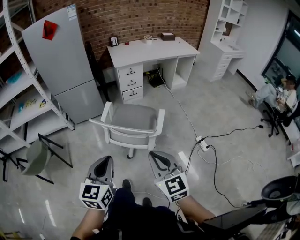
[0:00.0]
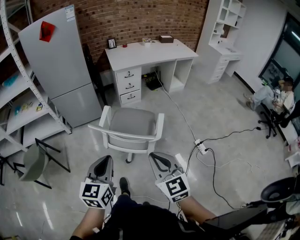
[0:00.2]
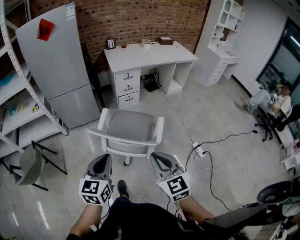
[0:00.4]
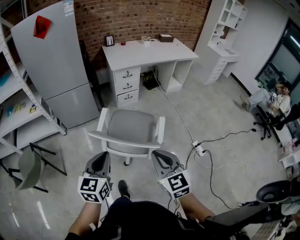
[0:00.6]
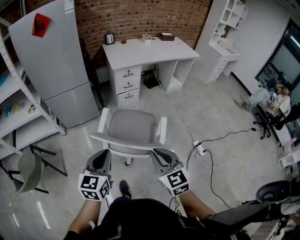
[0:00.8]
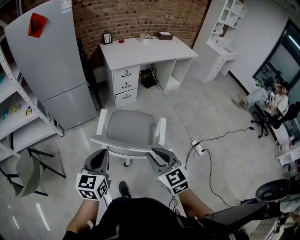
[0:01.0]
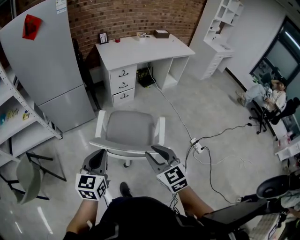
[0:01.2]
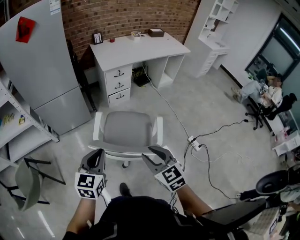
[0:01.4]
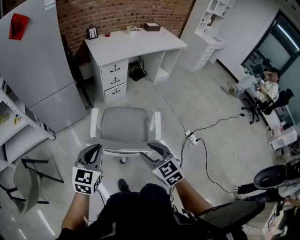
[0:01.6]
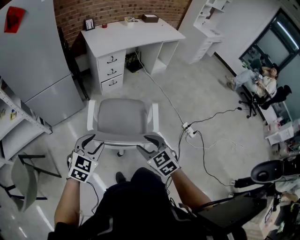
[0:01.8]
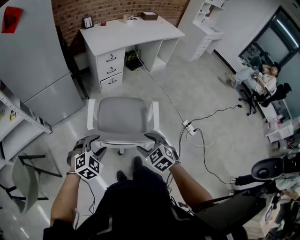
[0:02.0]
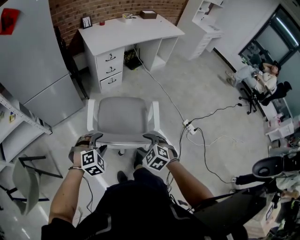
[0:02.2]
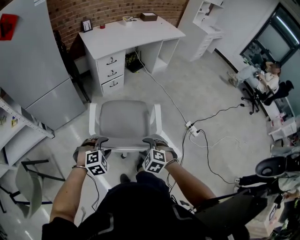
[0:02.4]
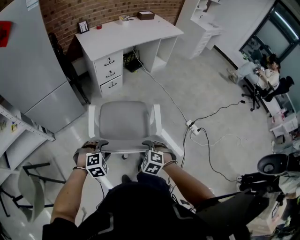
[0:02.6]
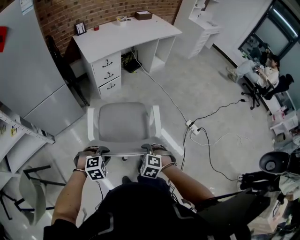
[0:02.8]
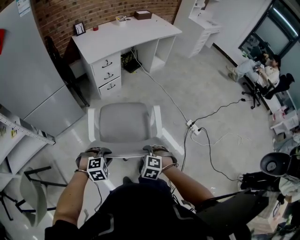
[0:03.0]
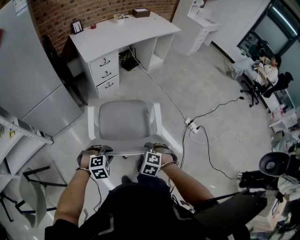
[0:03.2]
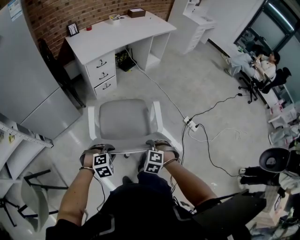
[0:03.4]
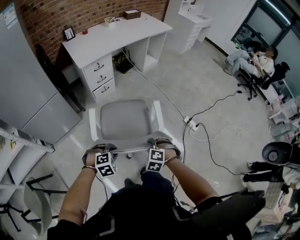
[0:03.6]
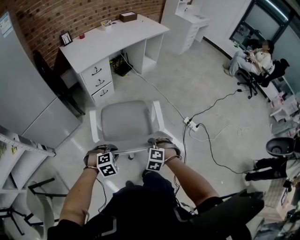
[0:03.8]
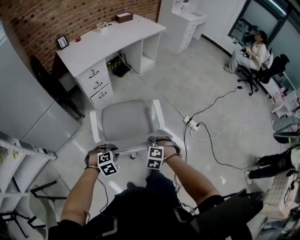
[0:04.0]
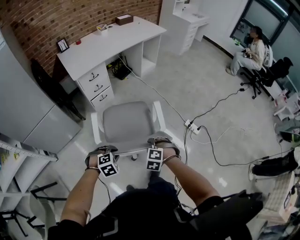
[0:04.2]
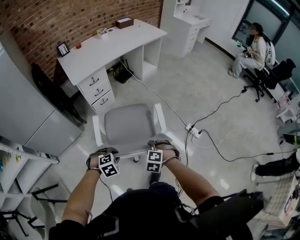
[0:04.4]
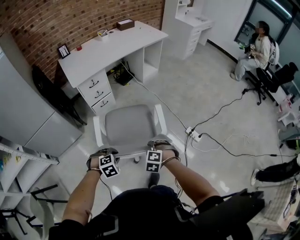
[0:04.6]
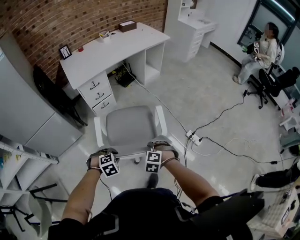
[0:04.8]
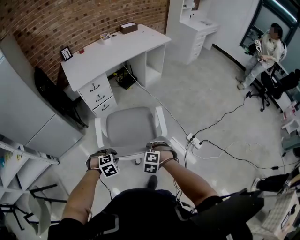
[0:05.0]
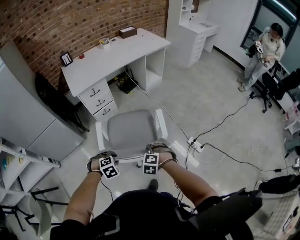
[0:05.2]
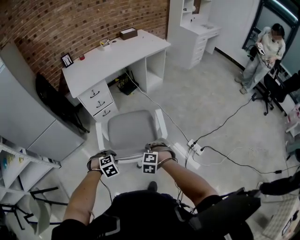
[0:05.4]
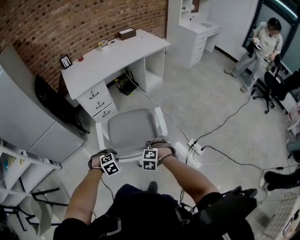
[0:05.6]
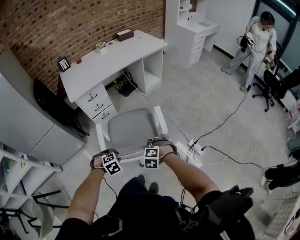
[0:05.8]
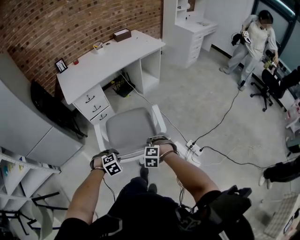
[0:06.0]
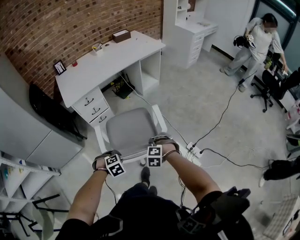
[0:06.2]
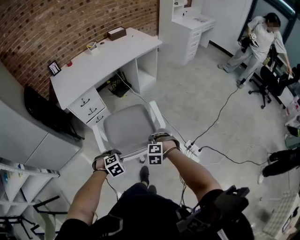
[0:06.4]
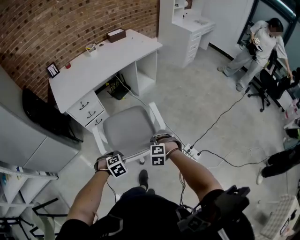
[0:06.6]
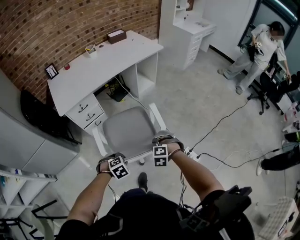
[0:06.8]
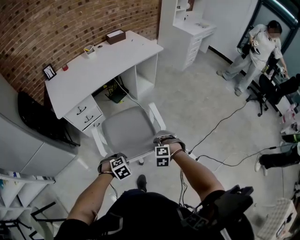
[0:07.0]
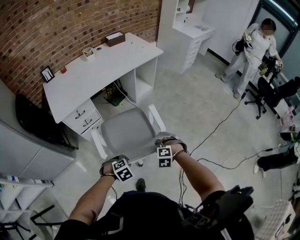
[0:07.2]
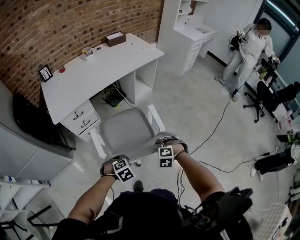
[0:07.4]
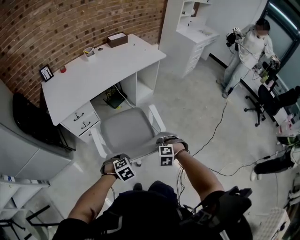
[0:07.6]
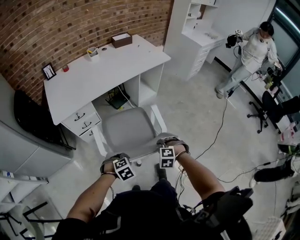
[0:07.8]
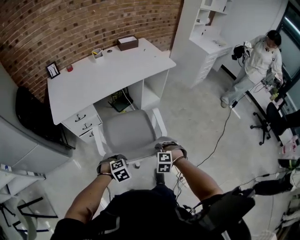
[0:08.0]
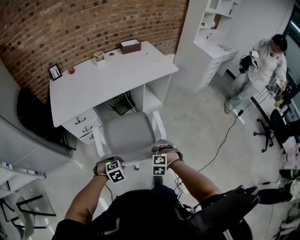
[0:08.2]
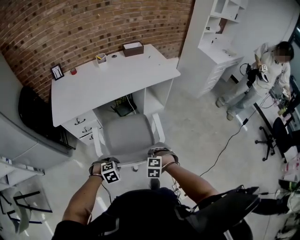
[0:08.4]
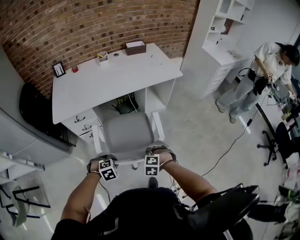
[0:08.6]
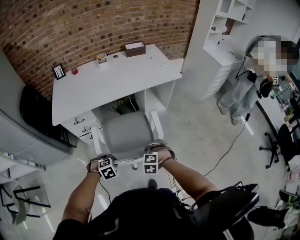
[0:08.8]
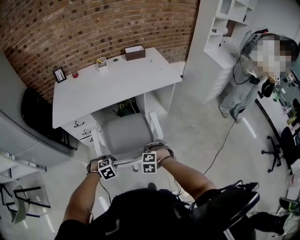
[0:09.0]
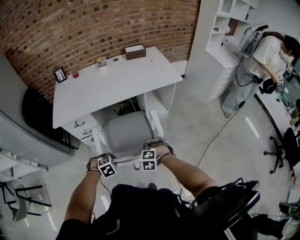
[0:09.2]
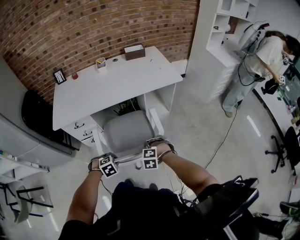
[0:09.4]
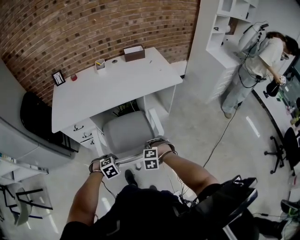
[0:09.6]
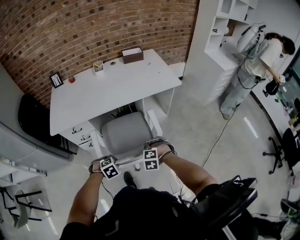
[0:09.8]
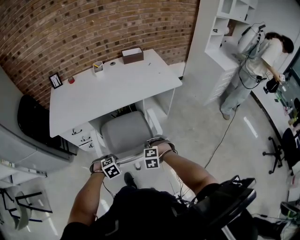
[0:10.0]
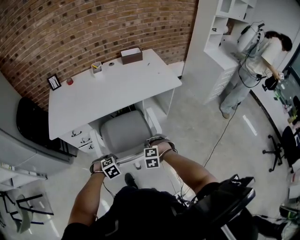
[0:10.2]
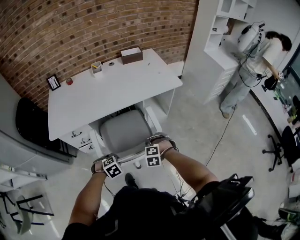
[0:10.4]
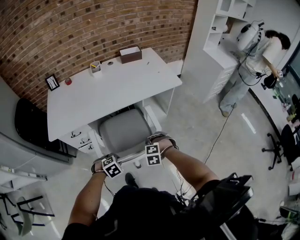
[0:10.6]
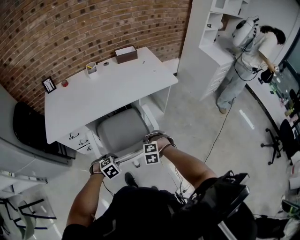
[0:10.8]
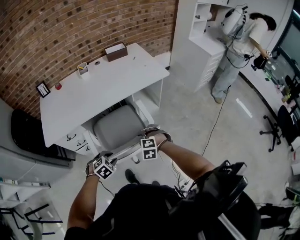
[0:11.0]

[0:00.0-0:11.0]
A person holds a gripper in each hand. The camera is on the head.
0:00.0 to 0:01.6: The left gripper travels forward and to the left by approximately 25 cm, and swivels about 20 degrees, while the right gripper shifts some 25 cm forward, downward and to the left, and opens its fingers.
0:01.6 to 0:03.2: The grippers both shift downward by approximately 20 cm. The right gripper points its fingers roughly 40 degrees further downward; the left gripper tilts its fingers some 40 degrees downward, and opens and closes again.
0:03.2 to 0:04.8: The grippers both shift forward and to the right by about 20 cm.
0:04.8 to 0:06.2: The right gripper moves some 15 cm, while the left gripper shifts by some 15 cm.
0:06.2 to 0:07.8: The right gripper changes place by some 25 cm. Meanwhile the left gripper ends up about 20 cm from where it was.
0:07.8 to 0:09.4: The left gripper shifts by approximately 20 cm; the right gripper moves some 20 cm, and rotates roughly 20 degrees.
0:09.4 to 0:11.0: The right gripper moves approximately 10 cm. The left gripper shifts by roughly 5 cm, and opens.

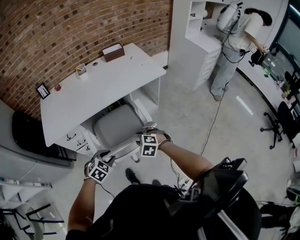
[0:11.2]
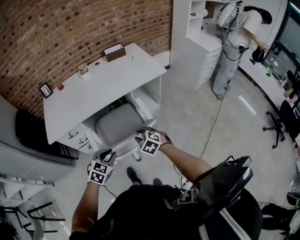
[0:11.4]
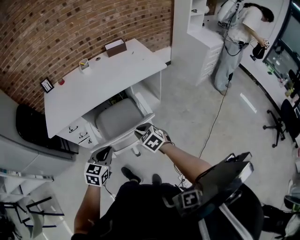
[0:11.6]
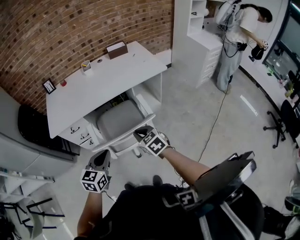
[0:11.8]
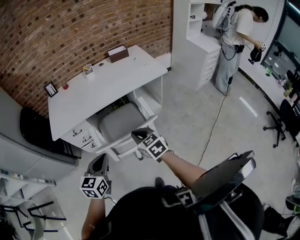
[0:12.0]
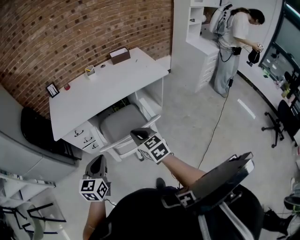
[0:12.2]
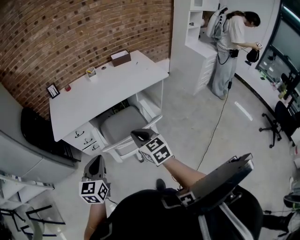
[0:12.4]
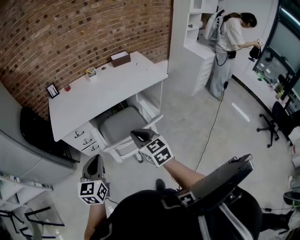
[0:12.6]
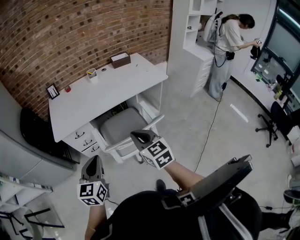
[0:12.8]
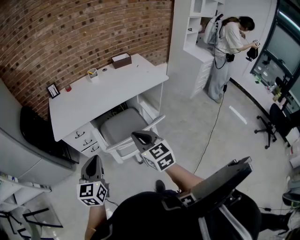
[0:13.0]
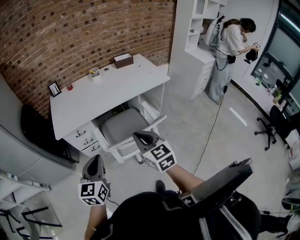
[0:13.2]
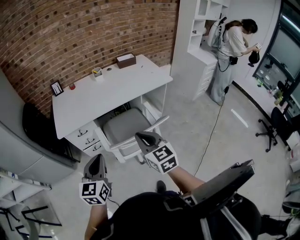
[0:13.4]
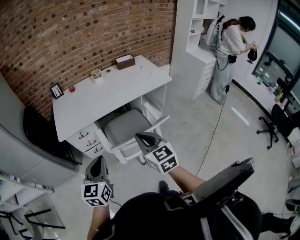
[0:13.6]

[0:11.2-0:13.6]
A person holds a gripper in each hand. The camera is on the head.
0:11.2 to 0:12.4: The right gripper shifts roughly 20 cm upward and backward, tips its fingers upward by about 30 degrees, and closes. The left gripper is displaced upward, backward and to the left by roughly 25 cm, tips its fingers upward by approximately 40 degrees, and closes.
0:12.4 to 0:13.6: Both grippers move to the left, approximately 5 cm.

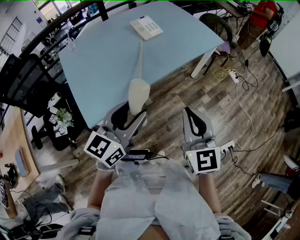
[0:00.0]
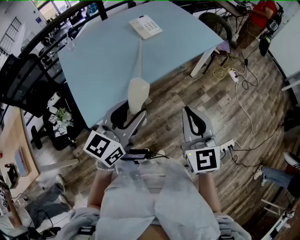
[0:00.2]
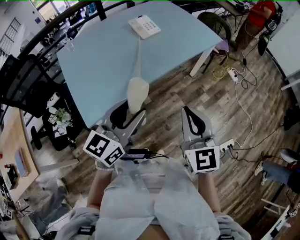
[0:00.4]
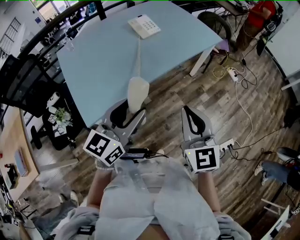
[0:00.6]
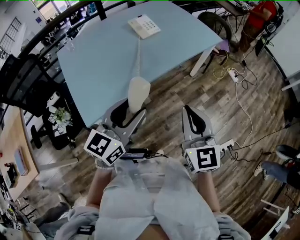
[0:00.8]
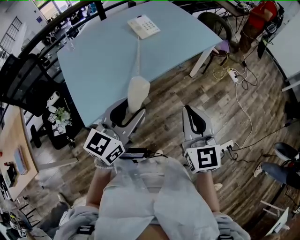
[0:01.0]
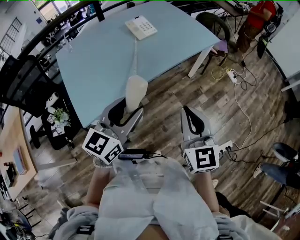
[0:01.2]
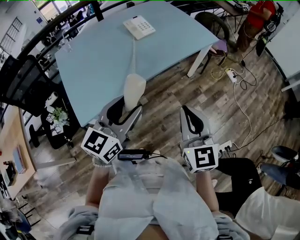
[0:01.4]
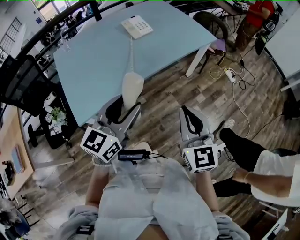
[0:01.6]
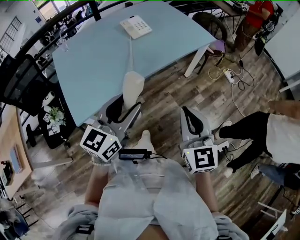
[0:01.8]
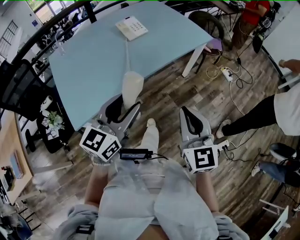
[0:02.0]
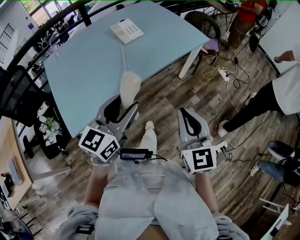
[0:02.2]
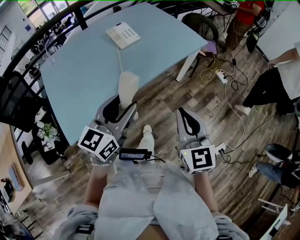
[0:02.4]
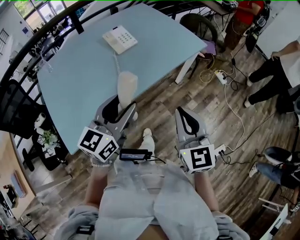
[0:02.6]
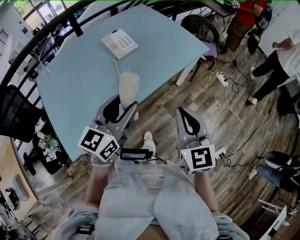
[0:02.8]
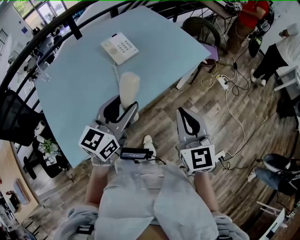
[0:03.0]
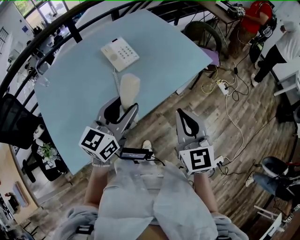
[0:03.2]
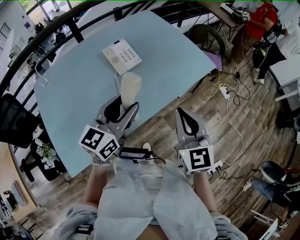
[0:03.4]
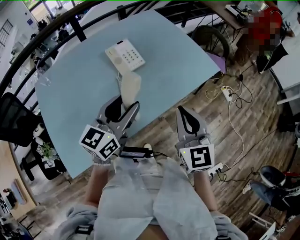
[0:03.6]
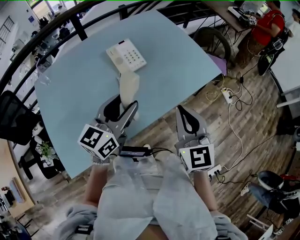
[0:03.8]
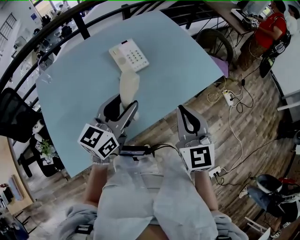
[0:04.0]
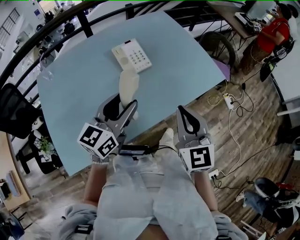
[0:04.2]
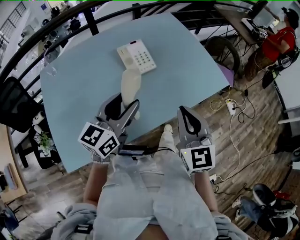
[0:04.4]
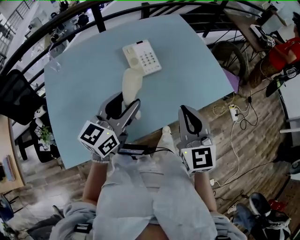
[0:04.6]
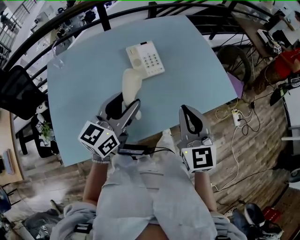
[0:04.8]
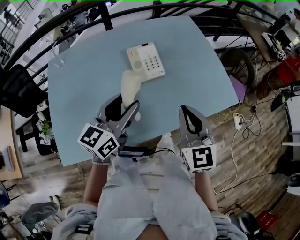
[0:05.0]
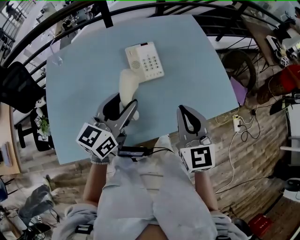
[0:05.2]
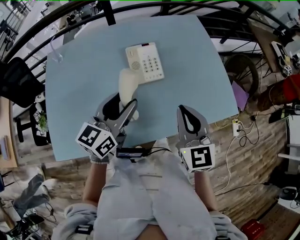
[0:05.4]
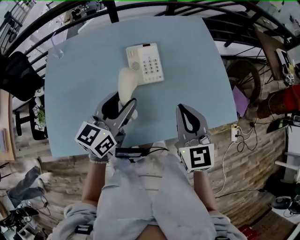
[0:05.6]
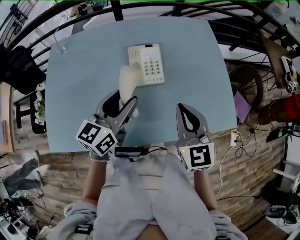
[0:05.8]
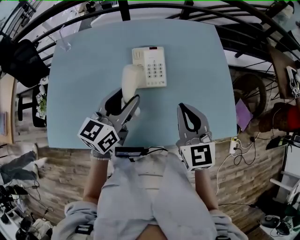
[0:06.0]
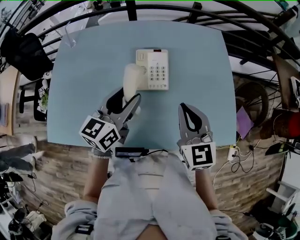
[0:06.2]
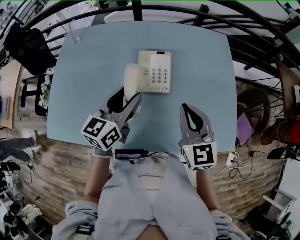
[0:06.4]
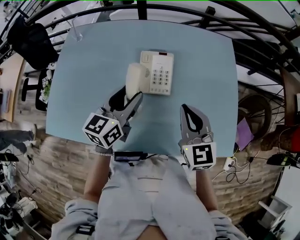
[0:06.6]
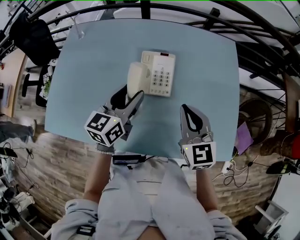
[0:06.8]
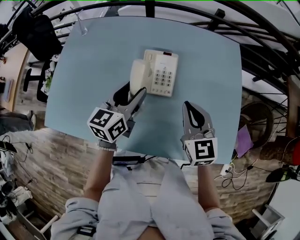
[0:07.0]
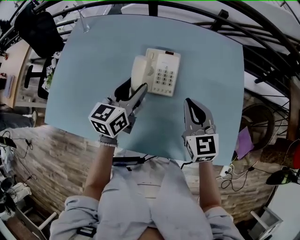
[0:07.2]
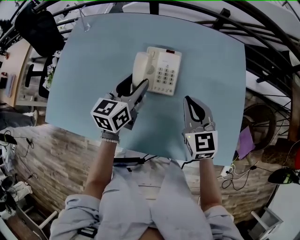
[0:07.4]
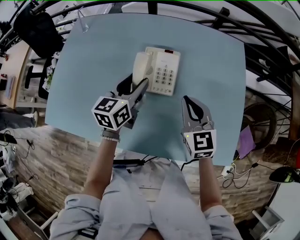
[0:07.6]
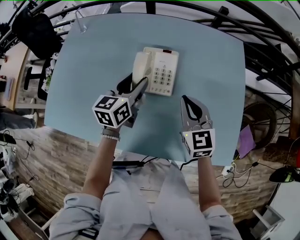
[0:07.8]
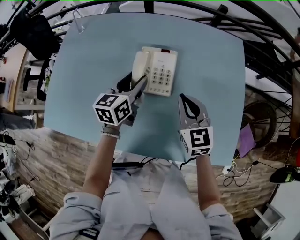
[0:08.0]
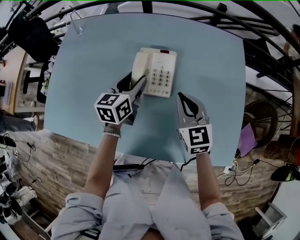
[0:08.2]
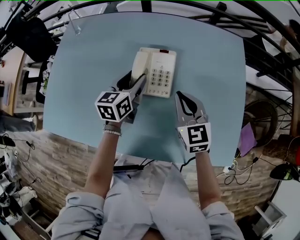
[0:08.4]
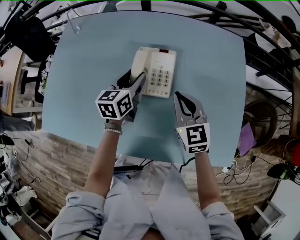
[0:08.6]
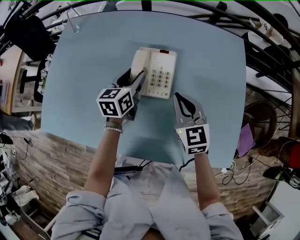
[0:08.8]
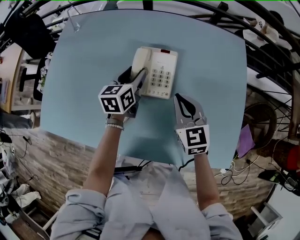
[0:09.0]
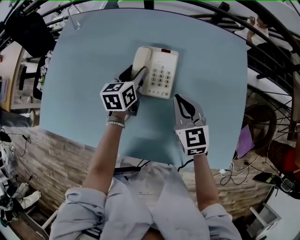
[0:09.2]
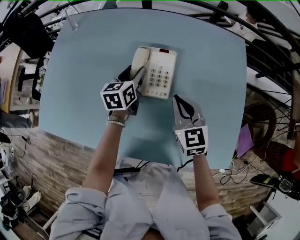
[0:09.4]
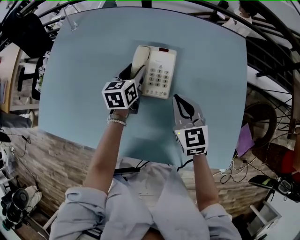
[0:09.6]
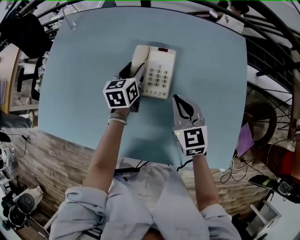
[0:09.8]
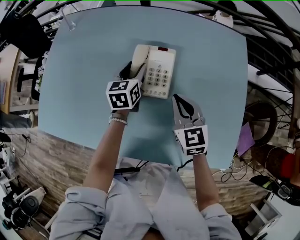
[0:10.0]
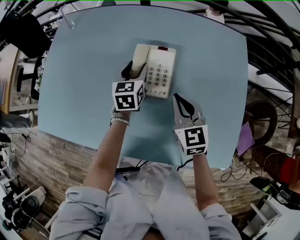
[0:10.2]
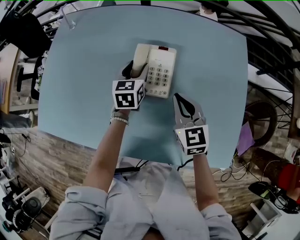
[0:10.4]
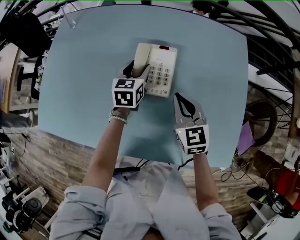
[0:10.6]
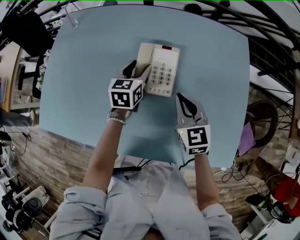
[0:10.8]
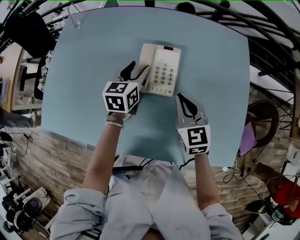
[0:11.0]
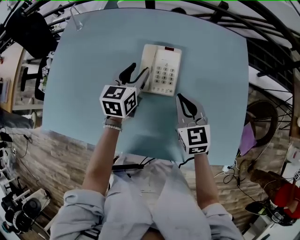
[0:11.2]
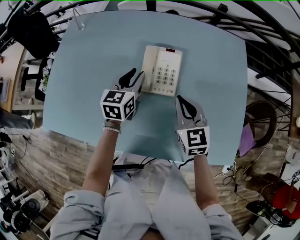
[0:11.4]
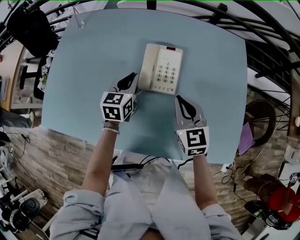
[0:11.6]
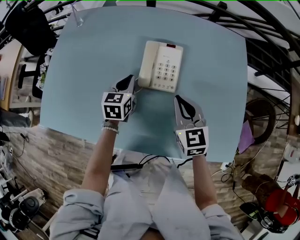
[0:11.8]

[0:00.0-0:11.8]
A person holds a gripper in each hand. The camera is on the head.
0:00.0 to 0:01.4: The right gripper moves some 5 cm.
0:01.4 to 0:03.0: Both grippers move forward, roughly 20 cm.
0:03.0 to 0:04.4: The right gripper is displaced forward by some 15 cm; the left gripper is displaced forward and to the left by some 10 cm.
0:04.4 to 0:06.0: The right gripper changes place by approximately 20 cm, and turns by some 30 degrees. Meanwhile the left gripper changes place by roughly 15 cm, and changes its angle by approximately 30 degrees.
0:06.0 to 0:07.4: The grippers both shift forward and downward by some 10 cm.
0:07.4 to 0:08.8: The left gripper moves downward and forward, about 10 cm; the right gripper changes place by some 5 cm.
0:08.8 to 0:10.4: The left gripper changes place by some 5 cm.
0:10.4 to 0:11.8: The left gripper shifts about 10 cm backward and to the left, and closes up.
